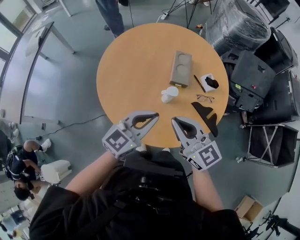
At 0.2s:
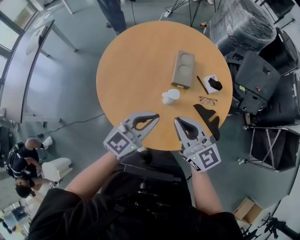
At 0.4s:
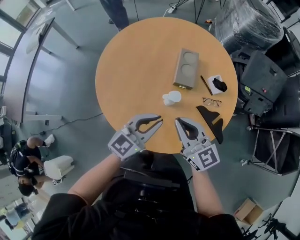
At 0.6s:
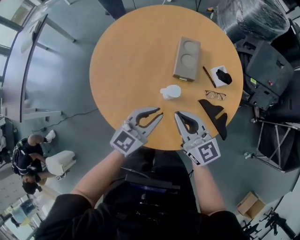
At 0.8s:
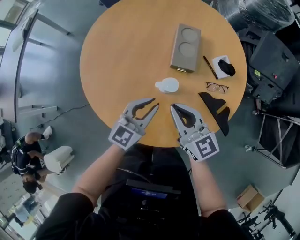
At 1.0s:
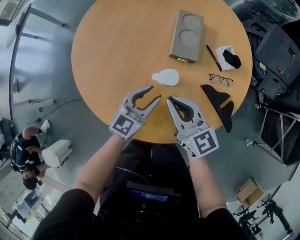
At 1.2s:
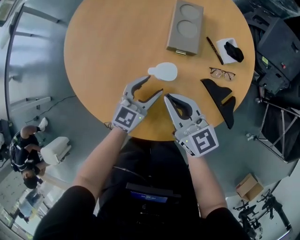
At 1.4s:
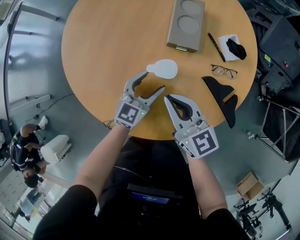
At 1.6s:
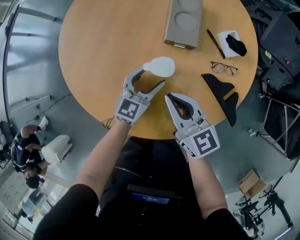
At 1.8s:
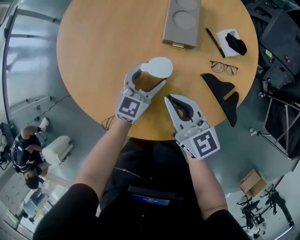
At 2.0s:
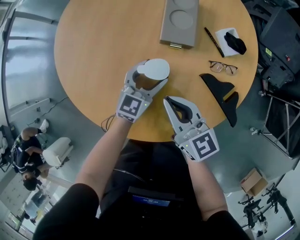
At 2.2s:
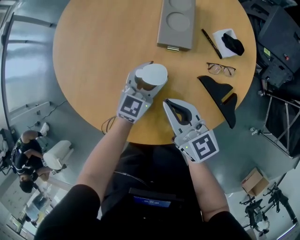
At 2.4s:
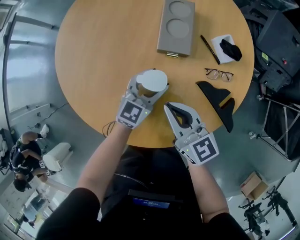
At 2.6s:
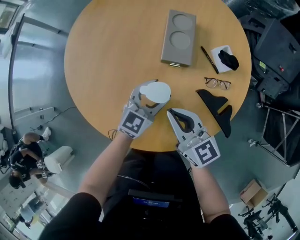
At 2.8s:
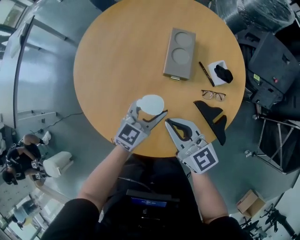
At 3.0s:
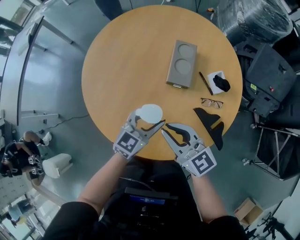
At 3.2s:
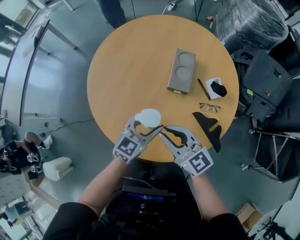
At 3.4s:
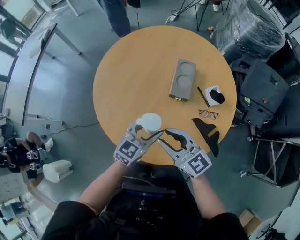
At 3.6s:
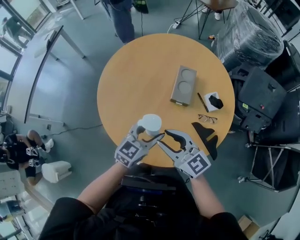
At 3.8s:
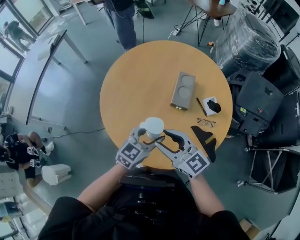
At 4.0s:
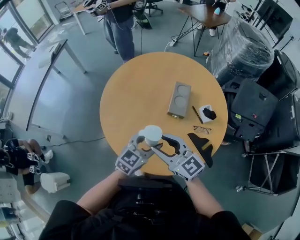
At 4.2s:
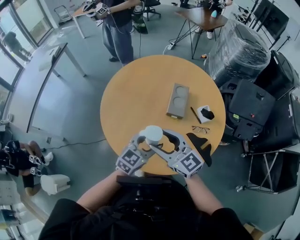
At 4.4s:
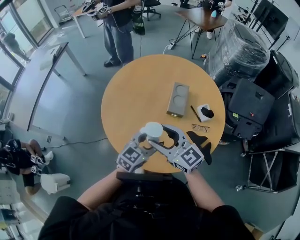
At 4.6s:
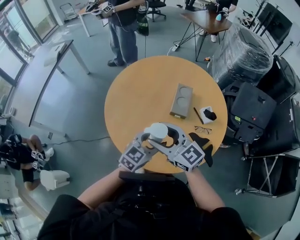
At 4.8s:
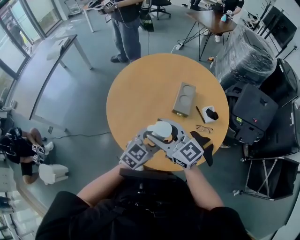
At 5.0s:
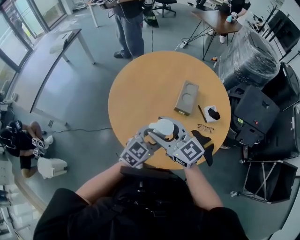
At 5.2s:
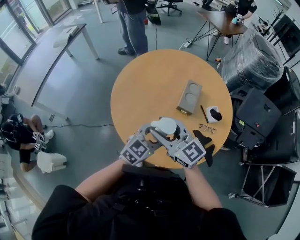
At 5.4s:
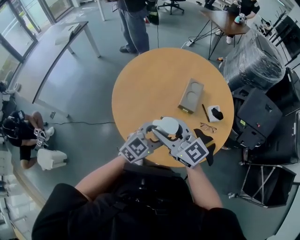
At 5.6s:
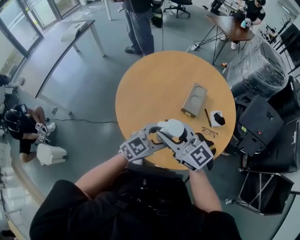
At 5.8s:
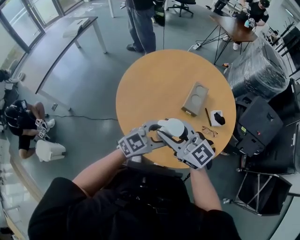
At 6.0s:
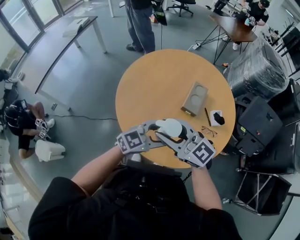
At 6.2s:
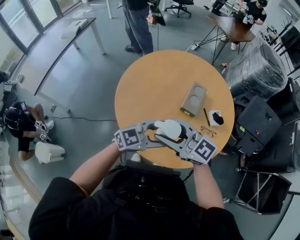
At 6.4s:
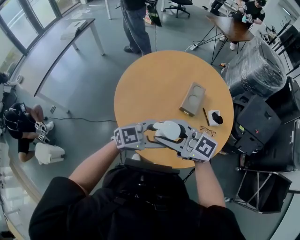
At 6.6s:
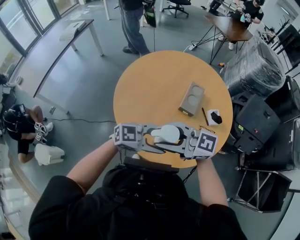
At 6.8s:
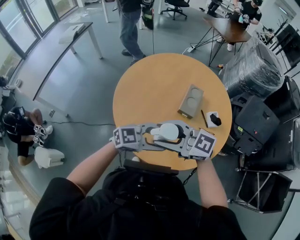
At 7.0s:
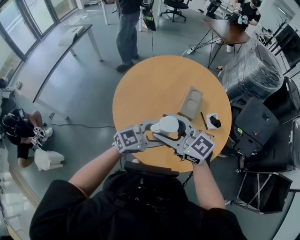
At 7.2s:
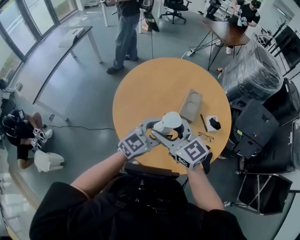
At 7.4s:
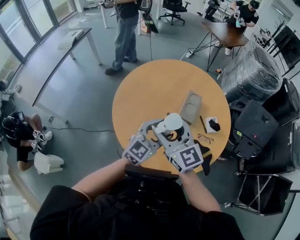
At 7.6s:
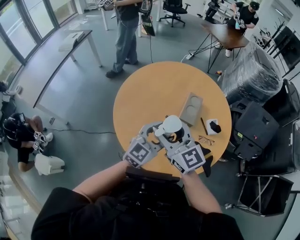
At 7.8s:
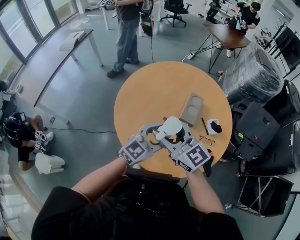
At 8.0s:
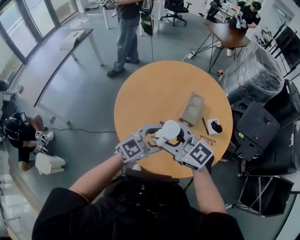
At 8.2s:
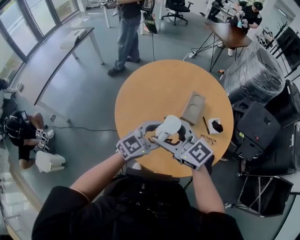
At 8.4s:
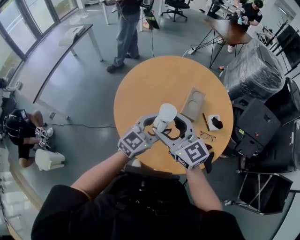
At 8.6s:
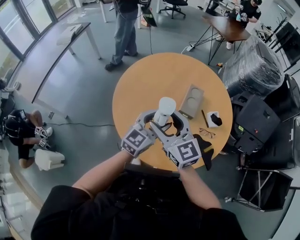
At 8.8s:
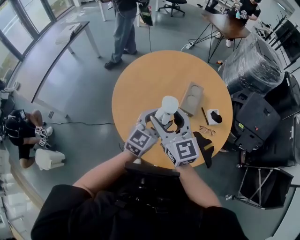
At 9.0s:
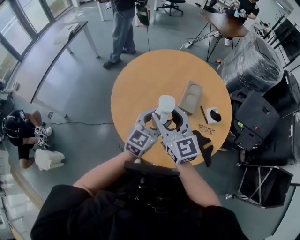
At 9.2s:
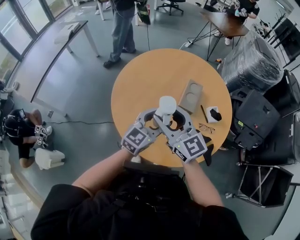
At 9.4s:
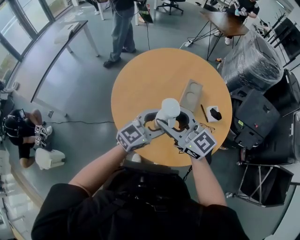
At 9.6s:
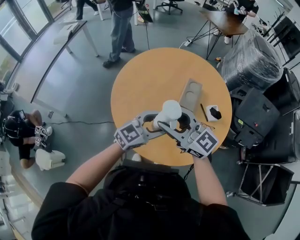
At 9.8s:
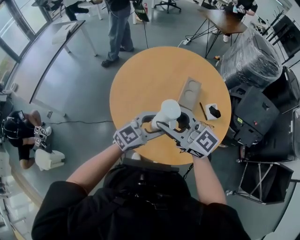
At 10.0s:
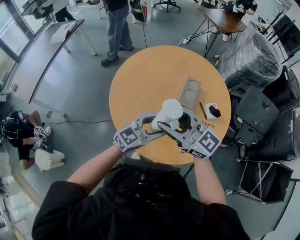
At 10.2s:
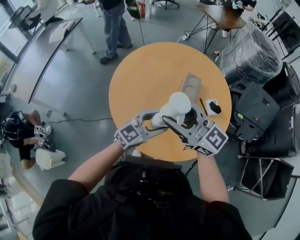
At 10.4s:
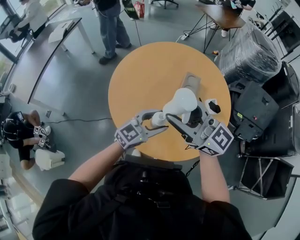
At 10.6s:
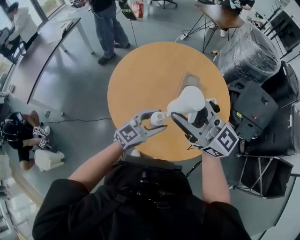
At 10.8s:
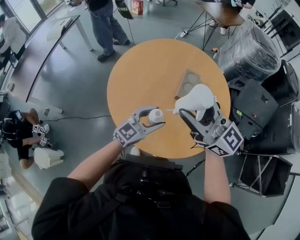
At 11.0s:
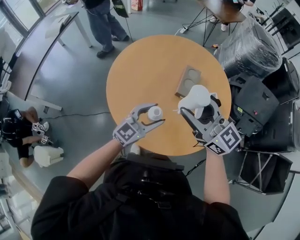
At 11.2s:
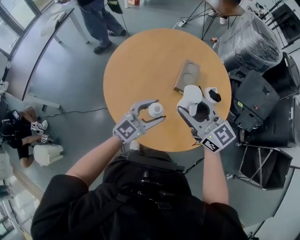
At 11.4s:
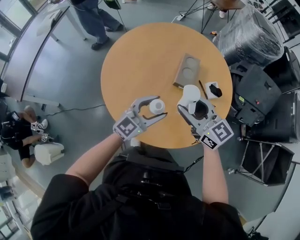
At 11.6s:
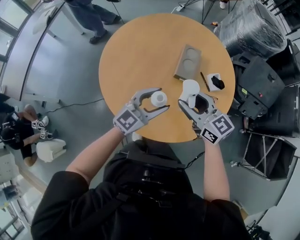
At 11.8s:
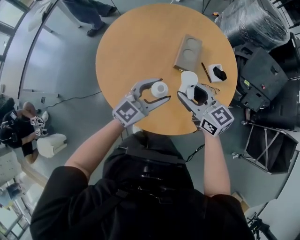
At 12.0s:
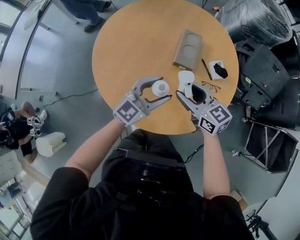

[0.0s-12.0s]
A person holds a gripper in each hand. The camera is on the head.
0.0s to 1.6s: The two grippers go about 40 cm downward and forward. The left gripper opens up.
1.6s to 3.0s: Both grippers travel together upward, approximately 15 cm.
3.0s to 4.4s: The left gripper is displaced upward and backward by roughly 25 cm. The right gripper is displaced upward by some 20 cm, and opens up.
4.4s to 6.0s: The left gripper shifts by some 5 cm; the right gripper changes place by about 10 cm, and turns by approximately 20 degrees.
6.0s to 7.6s: The right gripper ends up approximately 5 cm from where it was, and swivels some 20 degrees. Meanwhile the left gripper moves some 10 cm, and swivels approximately 20 degrees.
9.0s to 10.4s: The right gripper heads upward, covering approximately 10 cm, and rotates roughly 30 degrees; the left gripper shifts by about 5 cm, and changes its angle by roughly 20 degrees.
10.4s to 12.0s: The right gripper travels downward by approximately 30 cm, and angles its fingers downward, by some 30 degrees; the left gripper shifts approximately 15 cm downward and forward.

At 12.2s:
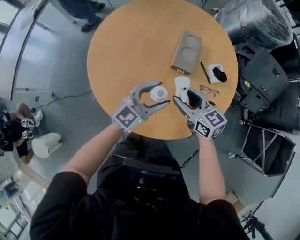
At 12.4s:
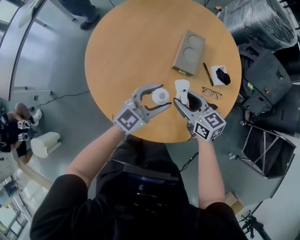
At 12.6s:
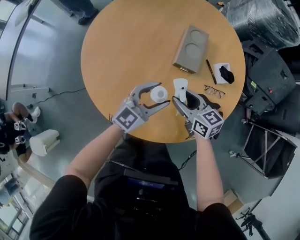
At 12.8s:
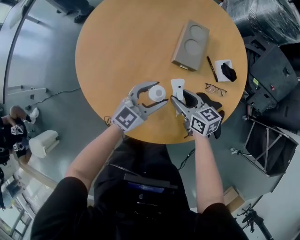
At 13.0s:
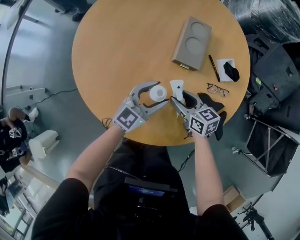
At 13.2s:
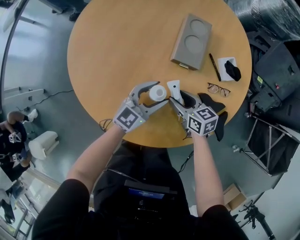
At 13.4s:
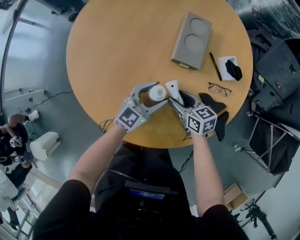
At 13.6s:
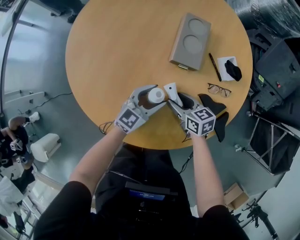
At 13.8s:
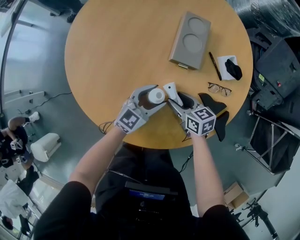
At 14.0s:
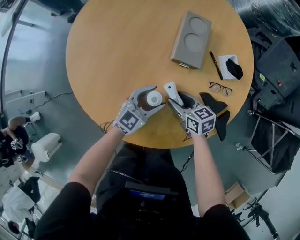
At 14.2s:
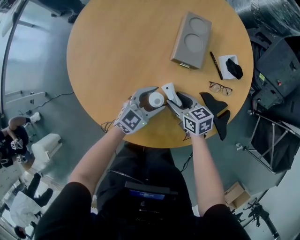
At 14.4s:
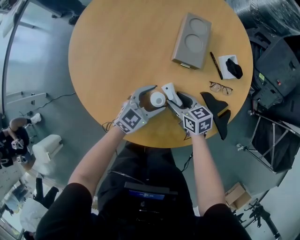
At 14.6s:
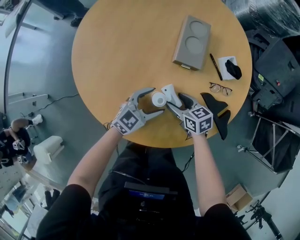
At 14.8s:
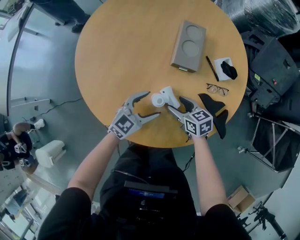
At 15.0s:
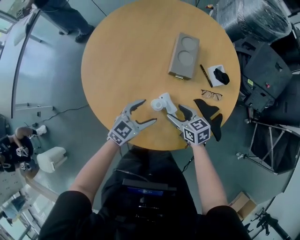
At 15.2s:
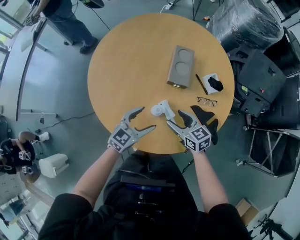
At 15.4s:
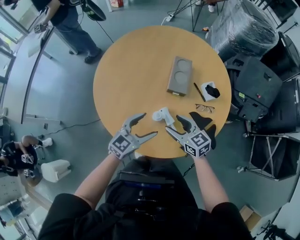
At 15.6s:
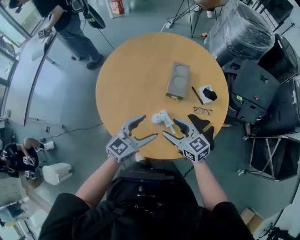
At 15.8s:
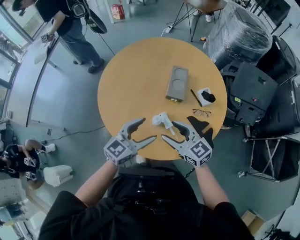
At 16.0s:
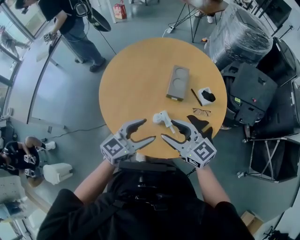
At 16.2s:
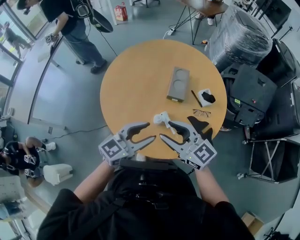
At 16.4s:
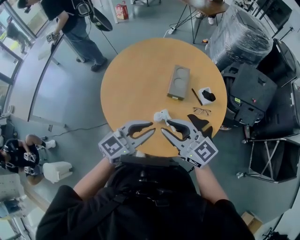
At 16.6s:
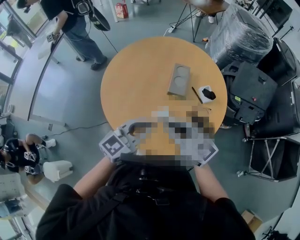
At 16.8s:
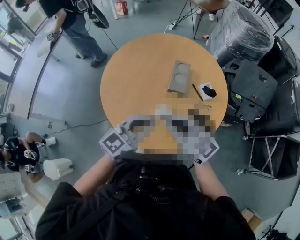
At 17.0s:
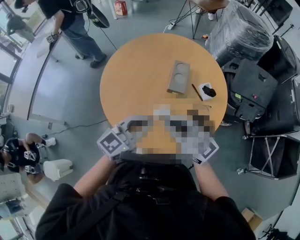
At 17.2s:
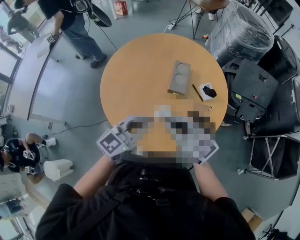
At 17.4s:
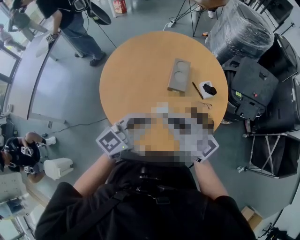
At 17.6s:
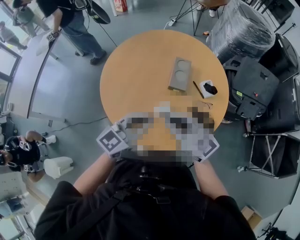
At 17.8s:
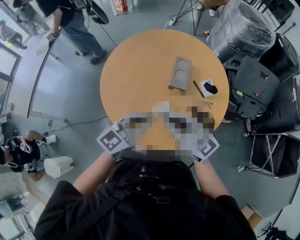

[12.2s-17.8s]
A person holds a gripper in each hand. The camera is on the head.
12.2s to 13.6s: The two grippers go approximately 25 cm downward. The right gripper rotates roughly 20 degrees.
13.6s to 15.0s: The left gripper heads upward, backward and to the left, covering some 15 cm; the right gripper goes about 10 cm upward and backward.
15.0s to 16.4s: The grippers both shift upward by some 40 cm. The left gripper closes. The right gripper tips its fingers upward by about 40 degrees, and closes.
16.4s to 17.8s: The right gripper closes.

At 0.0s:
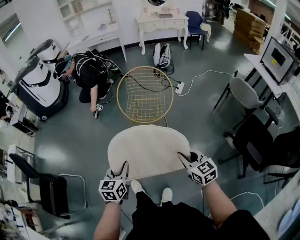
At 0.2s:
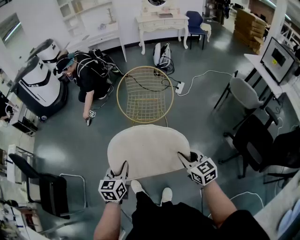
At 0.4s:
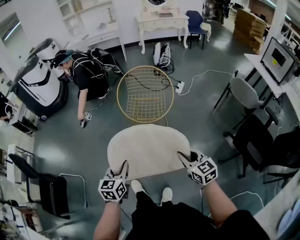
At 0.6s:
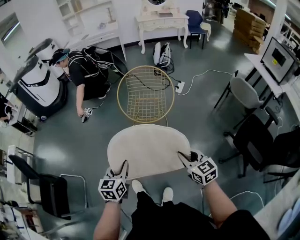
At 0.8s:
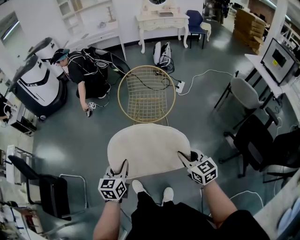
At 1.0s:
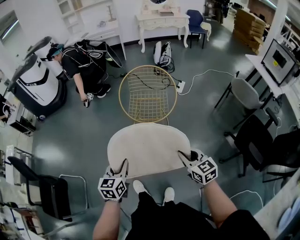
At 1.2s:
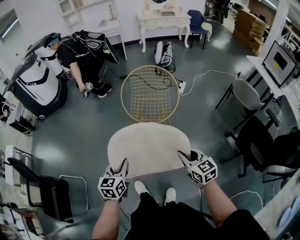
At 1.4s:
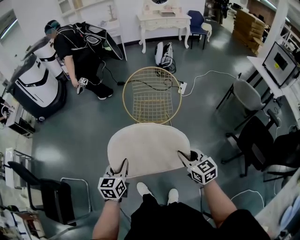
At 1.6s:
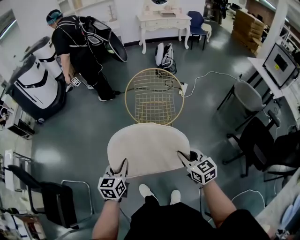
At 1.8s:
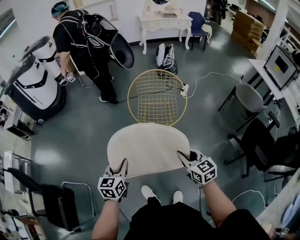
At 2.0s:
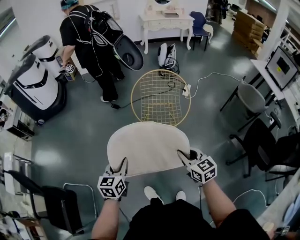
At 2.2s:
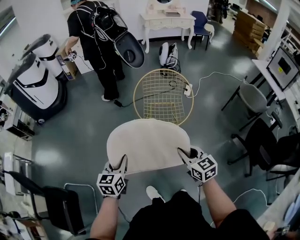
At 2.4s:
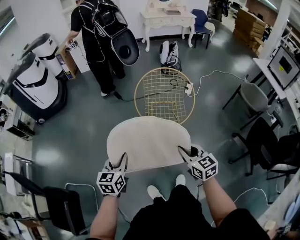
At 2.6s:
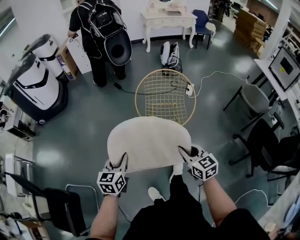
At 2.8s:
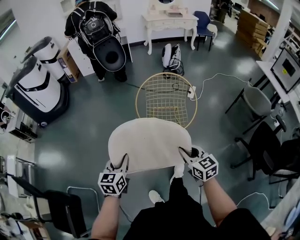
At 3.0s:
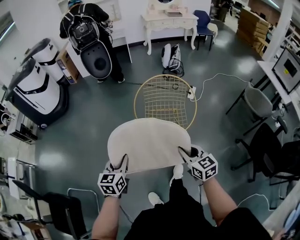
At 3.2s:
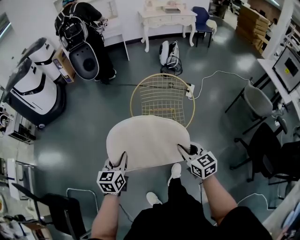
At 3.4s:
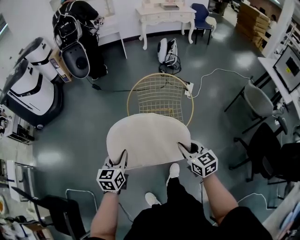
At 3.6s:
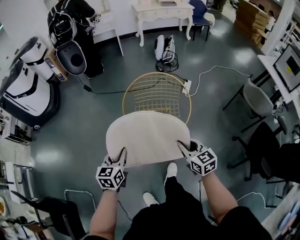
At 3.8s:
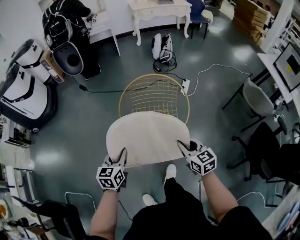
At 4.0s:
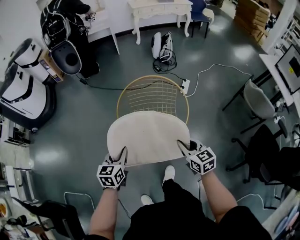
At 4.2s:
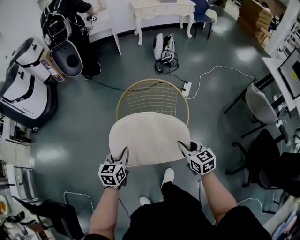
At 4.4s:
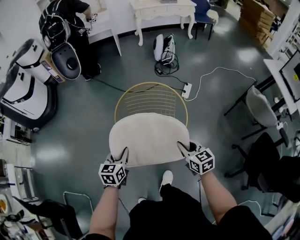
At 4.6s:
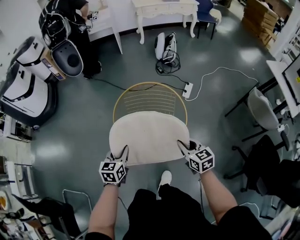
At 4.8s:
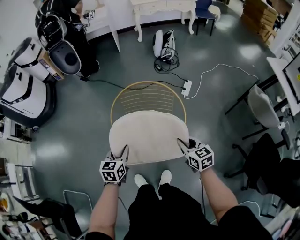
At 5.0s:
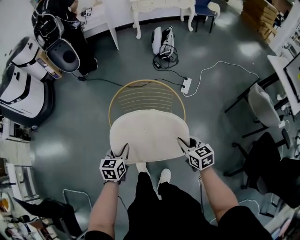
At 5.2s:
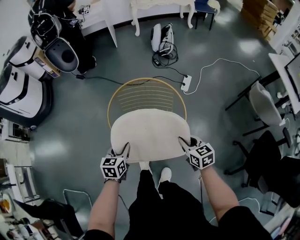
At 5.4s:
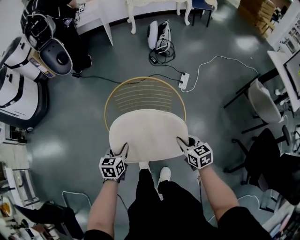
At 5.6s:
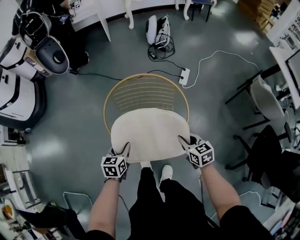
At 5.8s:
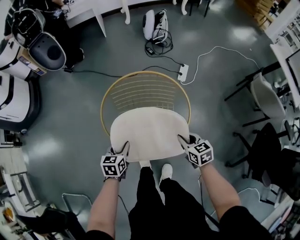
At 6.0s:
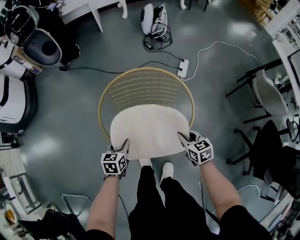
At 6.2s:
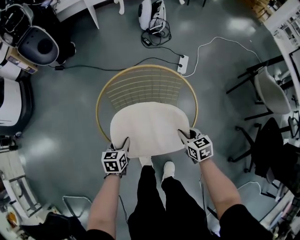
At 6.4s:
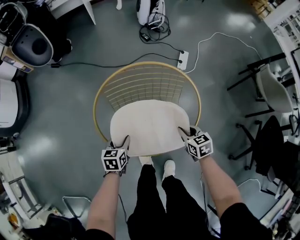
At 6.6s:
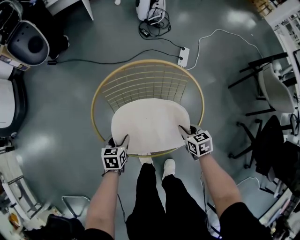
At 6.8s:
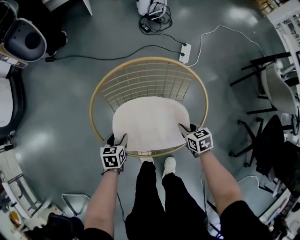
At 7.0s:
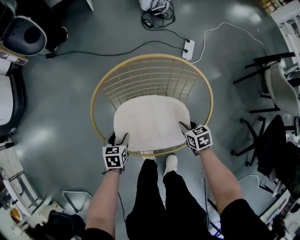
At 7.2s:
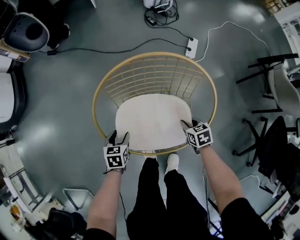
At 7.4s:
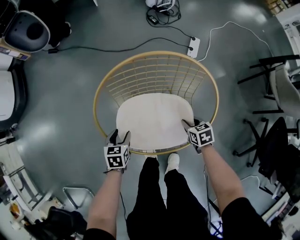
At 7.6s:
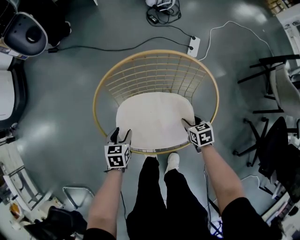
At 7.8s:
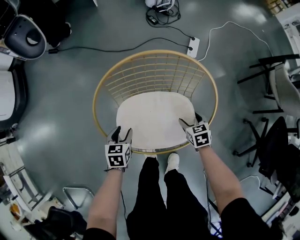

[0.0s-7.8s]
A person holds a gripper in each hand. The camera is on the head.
0.0s to 1.6s: Both grippers move to the left and forward, some 15 cm.
1.6s to 3.2s: The grippers both shift forward by about 15 cm.
3.2s to 4.6s: Both grippers move forward, to the right and downward, approximately 25 cm.
4.6s to 6.2s: The two grippers go some 25 cm downward and forward.
6.2s to 7.8s: The left gripper moves downward, about 10 cm, while the right gripper travels downward and forward by some 15 cm, and opens up.
